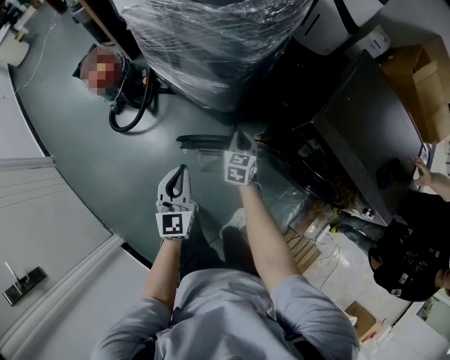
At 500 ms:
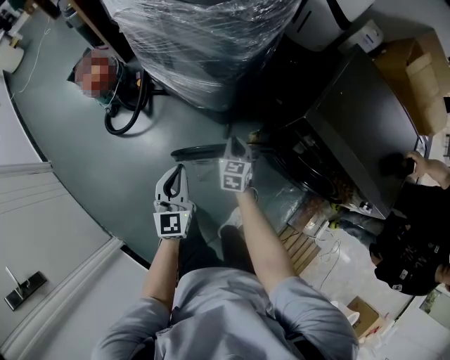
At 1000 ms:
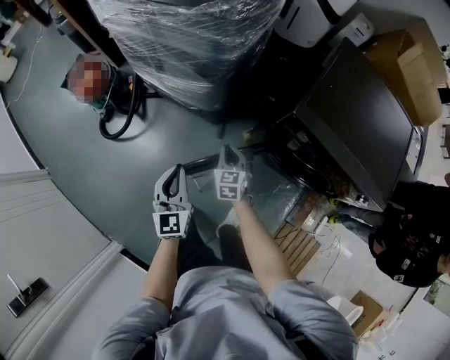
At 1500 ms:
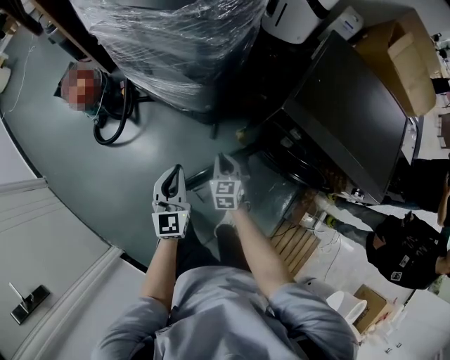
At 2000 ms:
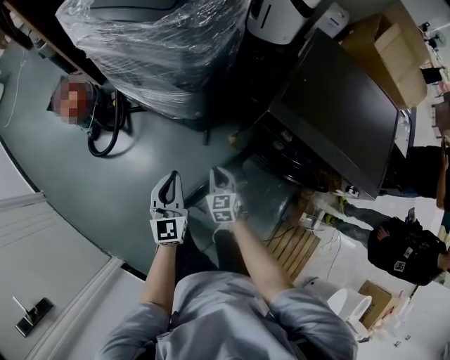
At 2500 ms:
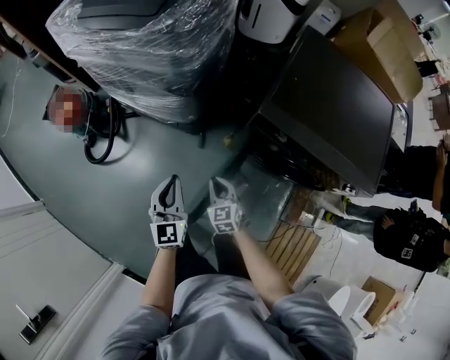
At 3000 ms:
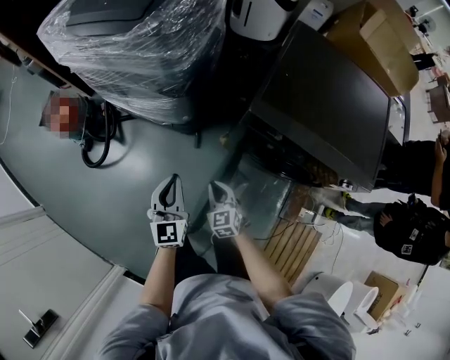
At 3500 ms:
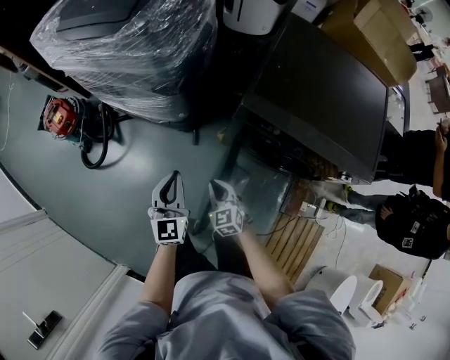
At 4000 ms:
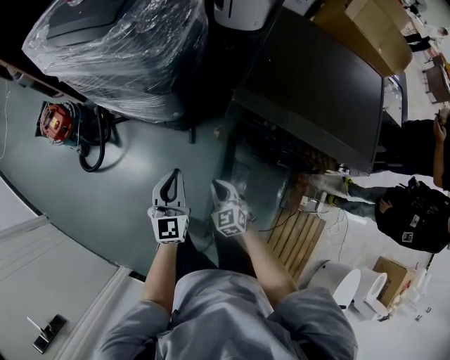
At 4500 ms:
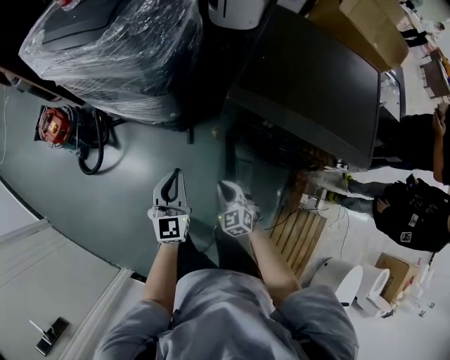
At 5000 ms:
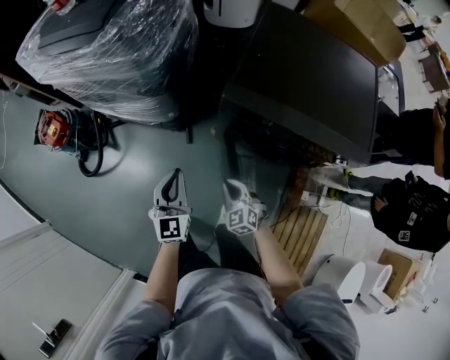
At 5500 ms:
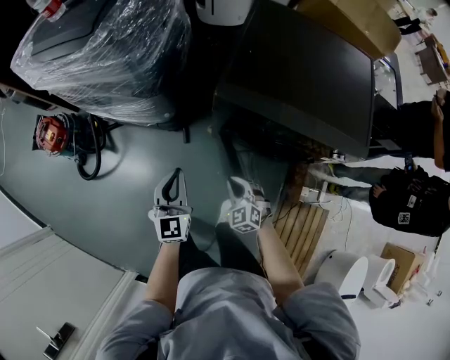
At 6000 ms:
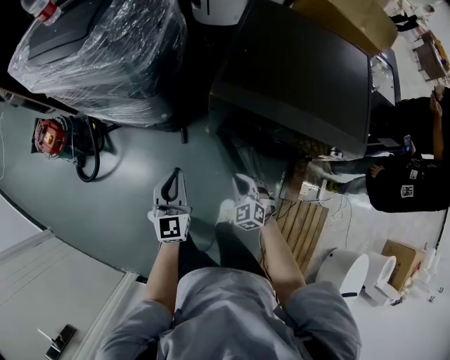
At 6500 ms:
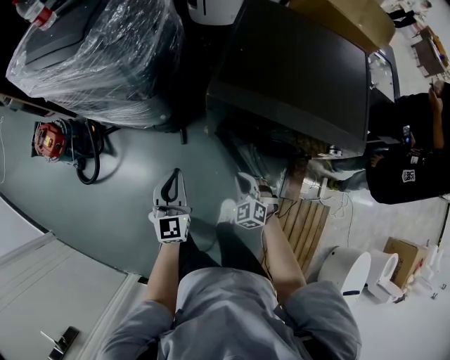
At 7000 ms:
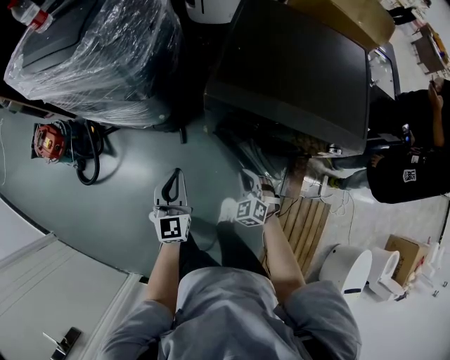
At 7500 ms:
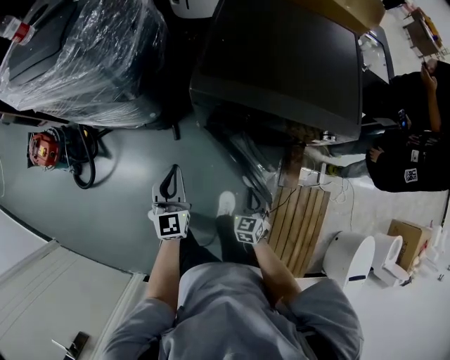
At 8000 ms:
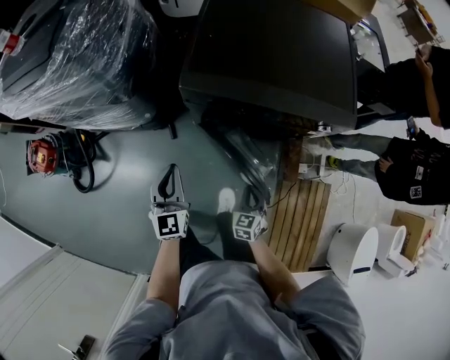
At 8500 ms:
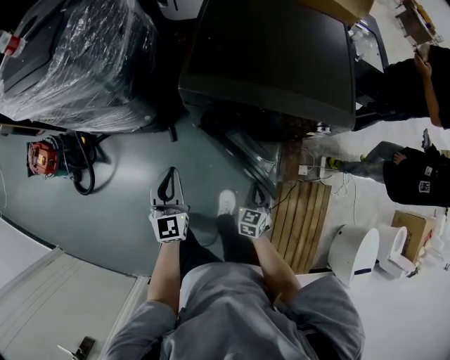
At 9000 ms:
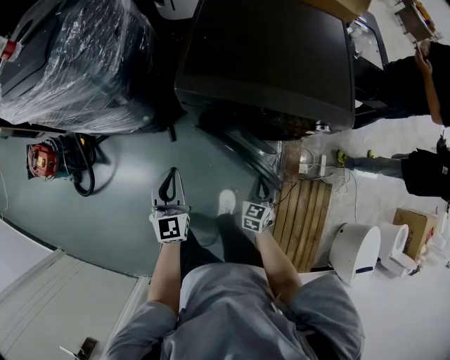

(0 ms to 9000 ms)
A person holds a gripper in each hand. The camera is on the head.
0 ms - 2000 ms: The left gripper is displaced to the right by some 5 cm, while the right gripper goes about 10 cm backward.
2000 ms - 4500 ms: The left gripper is displaced to the right by approximately 10 cm. Meanwhile the right gripper shifts roughly 10 cm to the right and backward.
4500 ms - 7000 ms: The right gripper shifts some 10 cm to the right.
7000 ms - 9000 ms: The right gripper shifts roughly 15 cm to the right, and rolls clockwise, seen from behind, by some 40 degrees.

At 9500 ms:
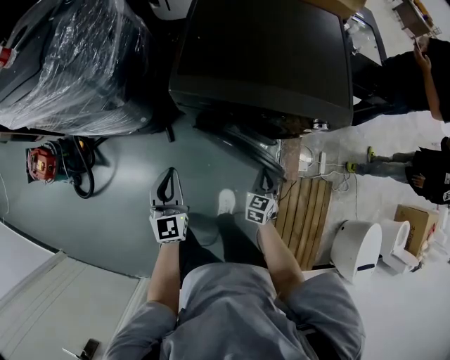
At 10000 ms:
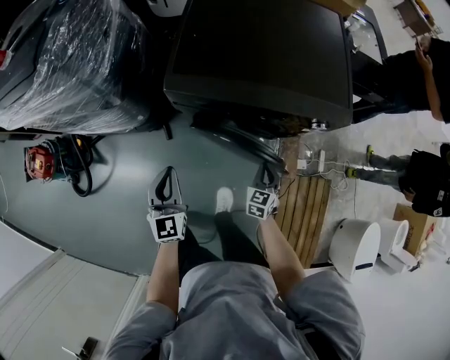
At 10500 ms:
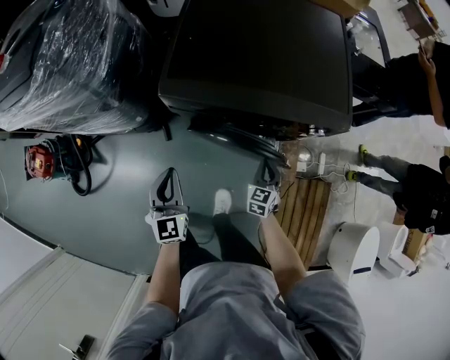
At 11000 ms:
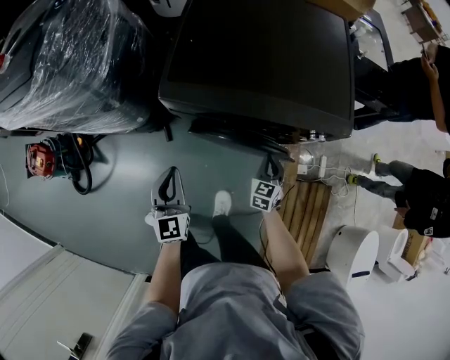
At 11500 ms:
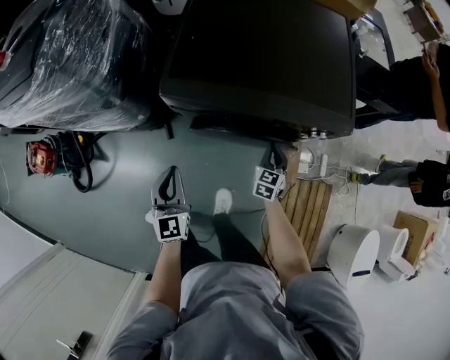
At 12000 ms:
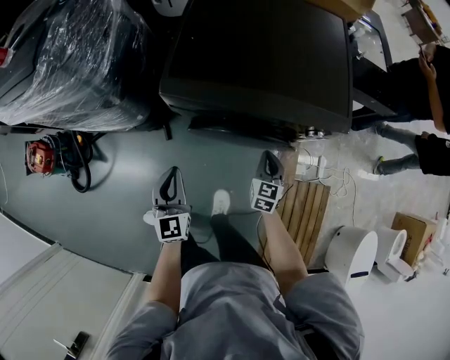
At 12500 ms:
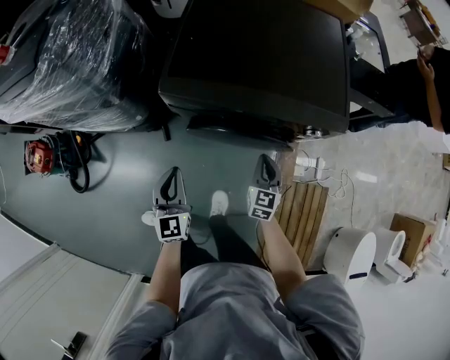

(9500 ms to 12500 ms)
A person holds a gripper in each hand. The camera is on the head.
9500 ms - 11000 ms: The right gripper travels forward by roughly 10 cm.
11000 ms - 12500 ms: The right gripper shifts roughly 5 cm upward.

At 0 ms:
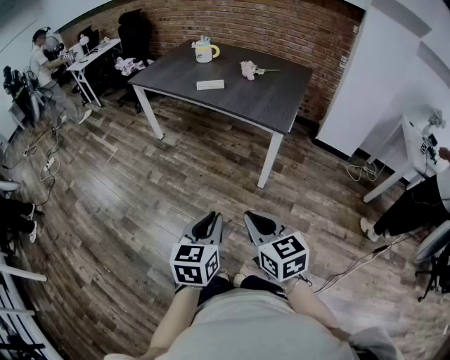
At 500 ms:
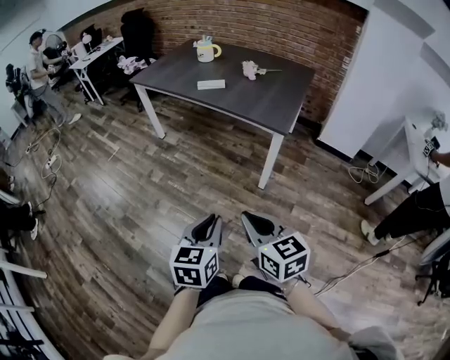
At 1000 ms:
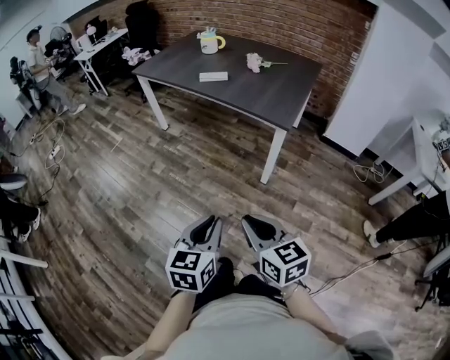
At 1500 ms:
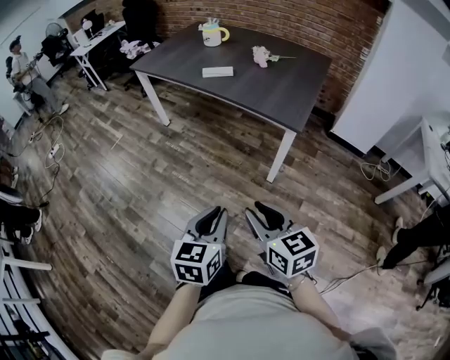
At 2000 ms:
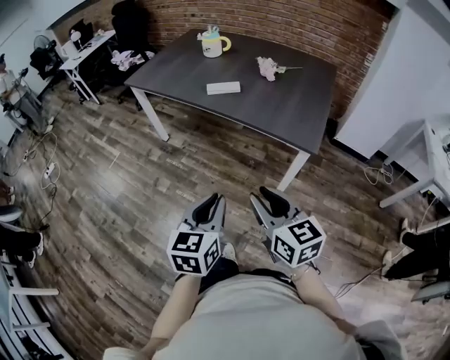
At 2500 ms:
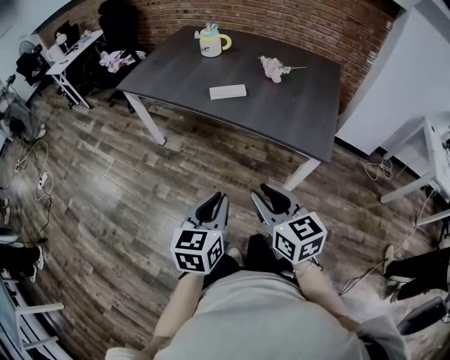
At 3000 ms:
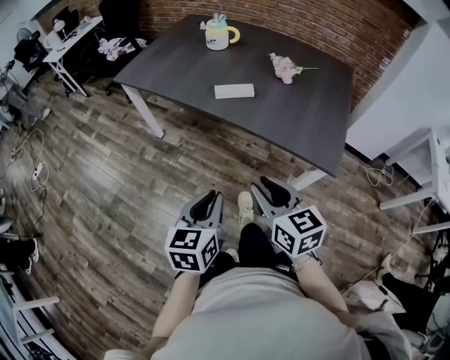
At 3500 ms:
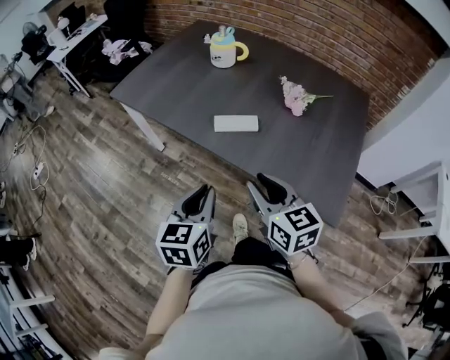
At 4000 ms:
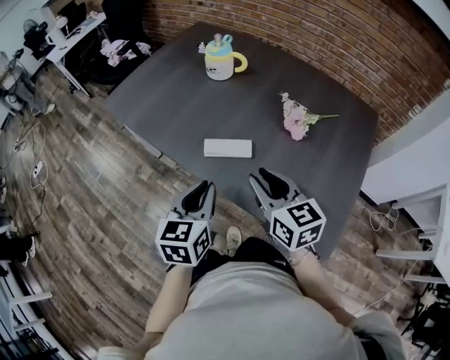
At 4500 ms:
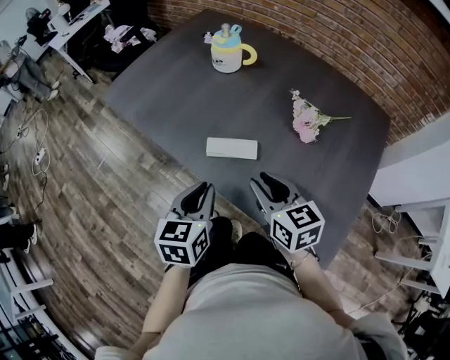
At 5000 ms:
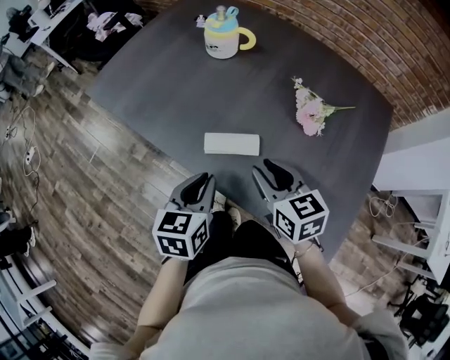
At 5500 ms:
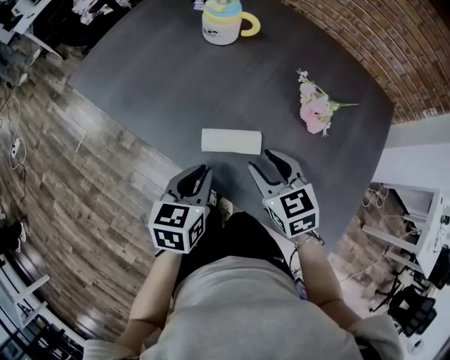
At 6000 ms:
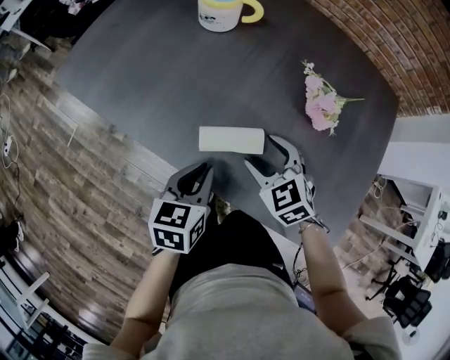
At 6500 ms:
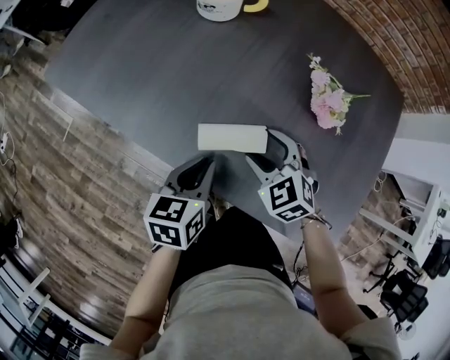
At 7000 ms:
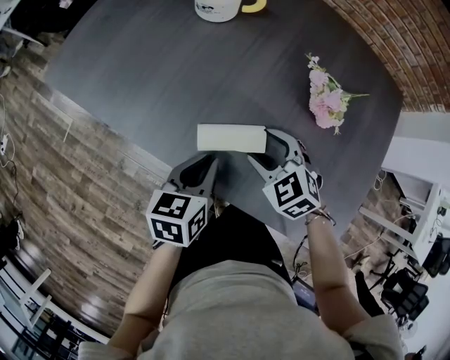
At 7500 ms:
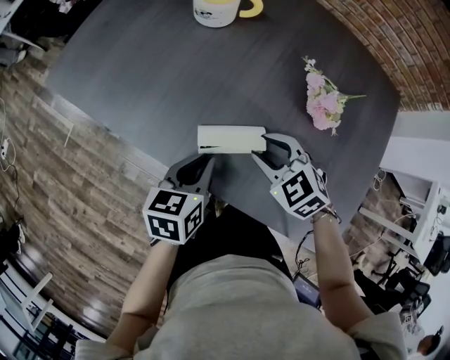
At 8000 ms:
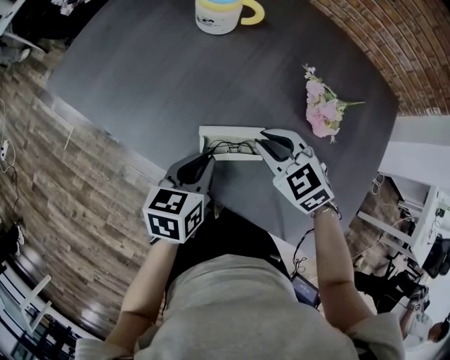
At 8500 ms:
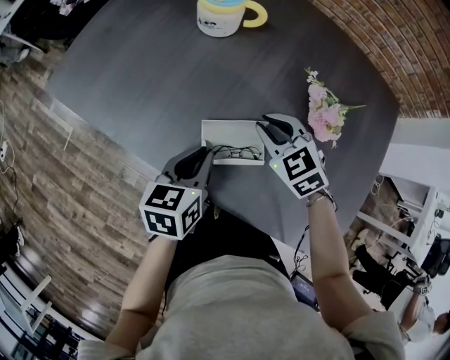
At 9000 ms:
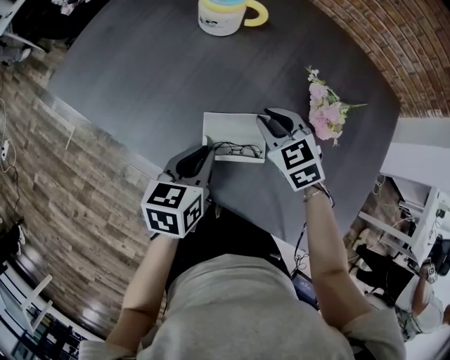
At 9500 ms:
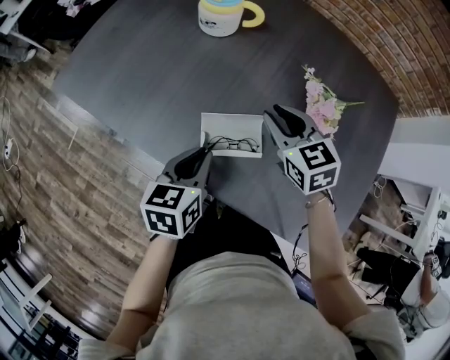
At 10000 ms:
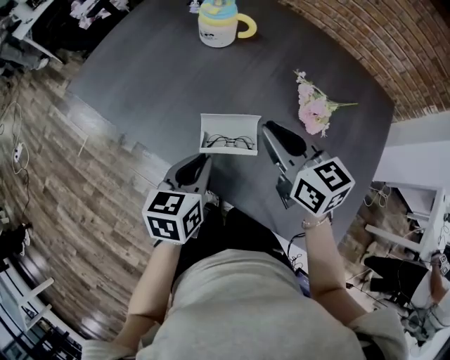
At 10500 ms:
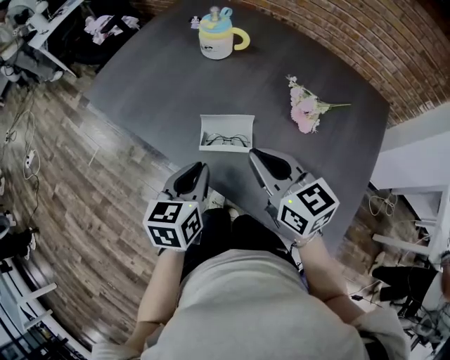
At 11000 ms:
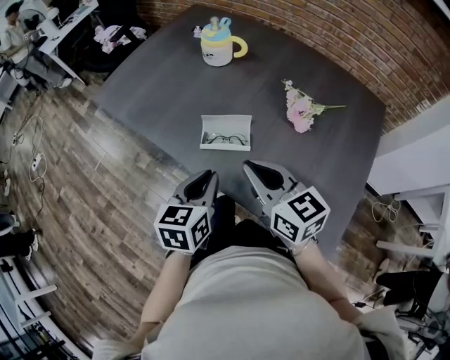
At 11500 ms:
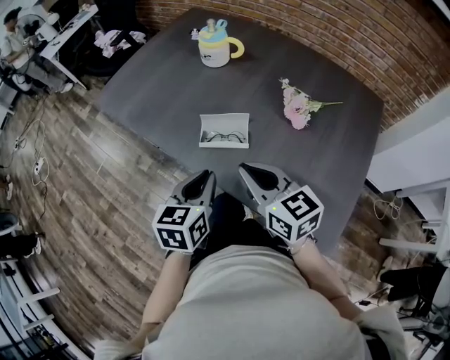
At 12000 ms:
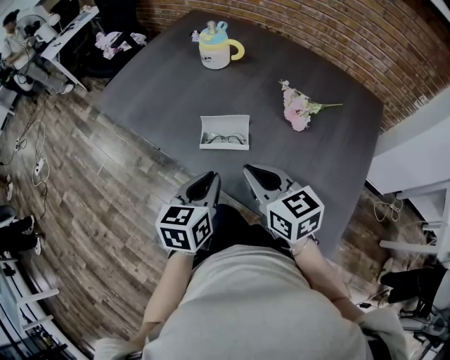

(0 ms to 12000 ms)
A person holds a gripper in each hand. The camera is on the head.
0 ms - 2000 ms: Both grippers move forward, about 25 cm.
2000 ms - 4000 ms: The pair of grippers is taken forward, about 40 cm.
4000 ms - 6000 ms: Both grippers move downward and forward, roughly 15 cm. The right gripper swivels roughly 40 degrees, and opens.
6000 ms - 8000 ms: The right gripper ends up approximately 5 cm from where it was, and closes its fingers.
8000 ms - 10000 ms: The left gripper moves some 5 cm. The right gripper goes approximately 10 cm upward, and swivels some 40 degrees.
10000 ms - 12000 ms: Both grippers travel together backward, some 10 cm.
